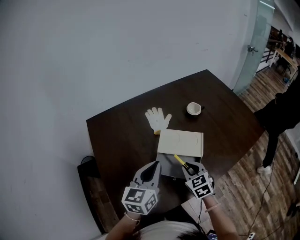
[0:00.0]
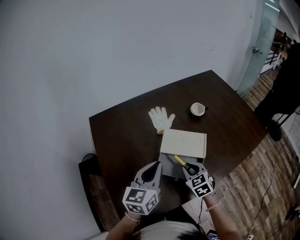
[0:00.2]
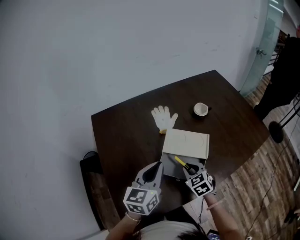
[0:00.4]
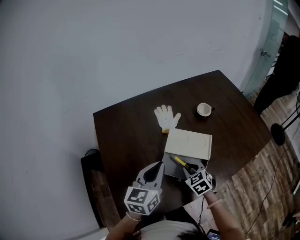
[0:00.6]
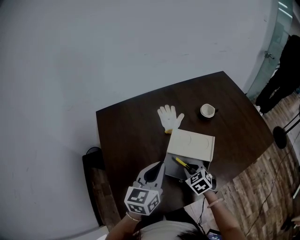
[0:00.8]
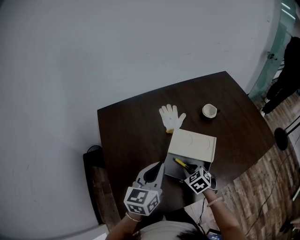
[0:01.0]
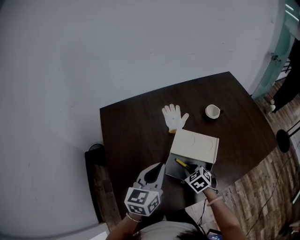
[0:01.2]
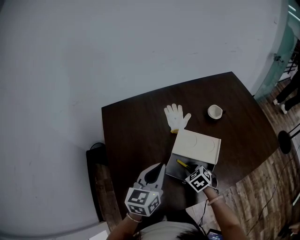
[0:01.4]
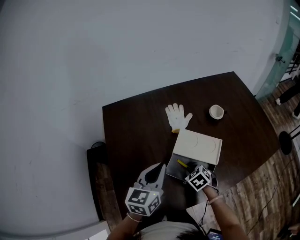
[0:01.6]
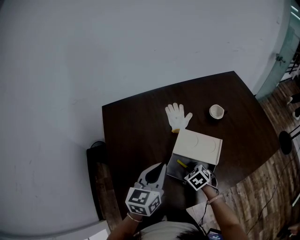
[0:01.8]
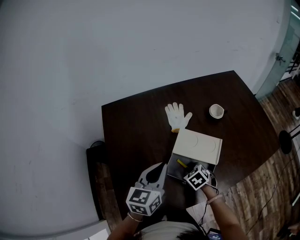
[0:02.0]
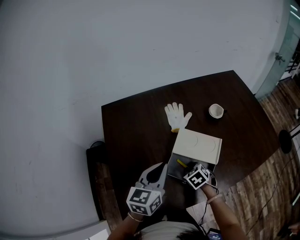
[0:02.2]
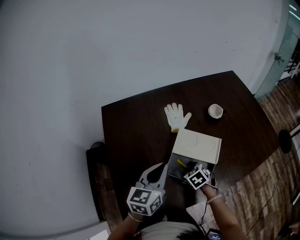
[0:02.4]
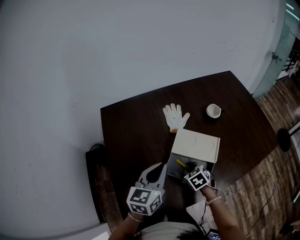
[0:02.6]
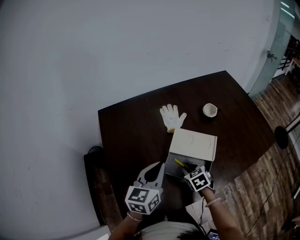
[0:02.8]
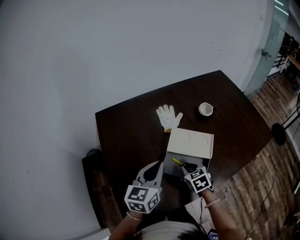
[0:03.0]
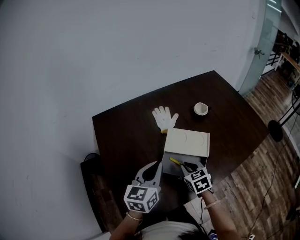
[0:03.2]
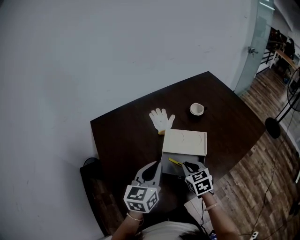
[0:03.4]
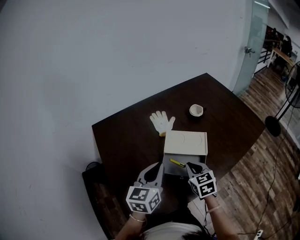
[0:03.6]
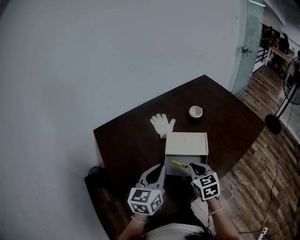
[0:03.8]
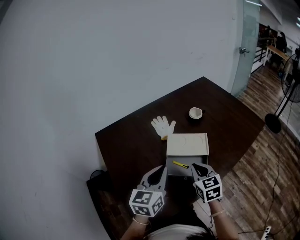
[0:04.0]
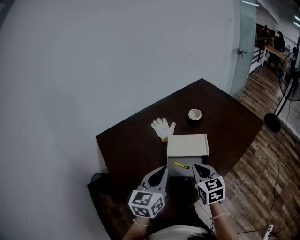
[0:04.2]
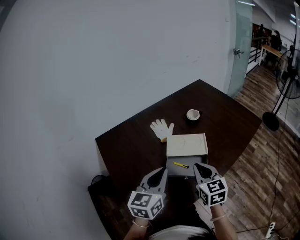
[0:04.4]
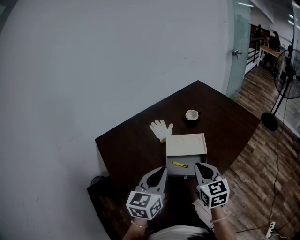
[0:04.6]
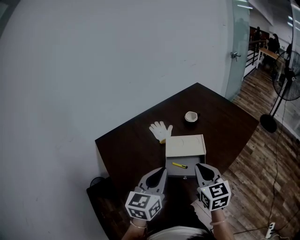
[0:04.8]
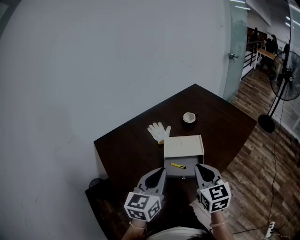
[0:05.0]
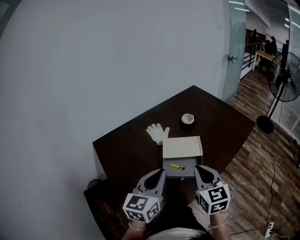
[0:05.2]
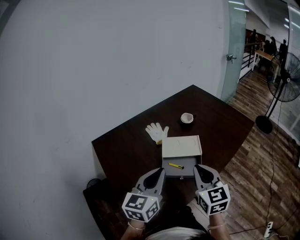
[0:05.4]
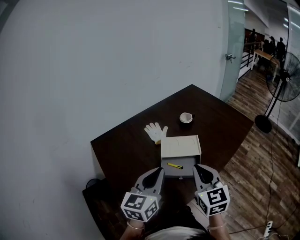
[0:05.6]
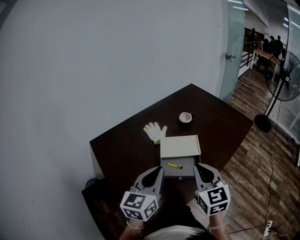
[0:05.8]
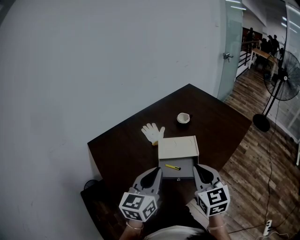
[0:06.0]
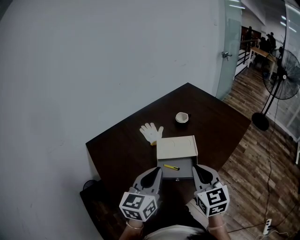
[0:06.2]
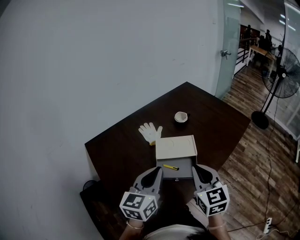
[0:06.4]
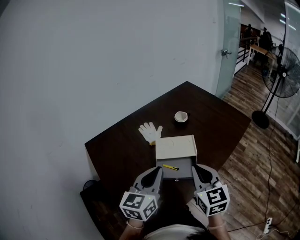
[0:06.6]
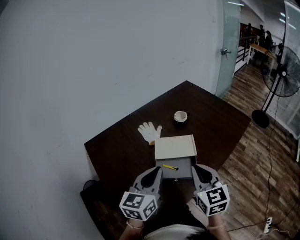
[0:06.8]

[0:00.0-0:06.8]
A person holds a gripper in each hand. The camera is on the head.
0:00.0 to 0:01.4: The right gripper is displaced downward by roughly 10 cm, and rotates roughly 30 degrees.
0:01.4 to 0:02.8: The grippers make only small movements.
0:02.8 to 0:04.0: The right gripper moves upward and backward, about 15 cm, and turns by some 30 degrees. Meanwhile the left gripper heads backward, covering approximately 5 cm.
0:04.0 to 0:05.4: The right gripper travels upward and backward by about 15 cm. The left gripper moves upward and backward, roughly 10 cm.
0:05.4 to 0:06.8: There are only small adjustments of the grippers.

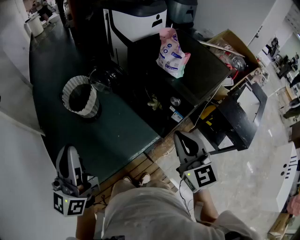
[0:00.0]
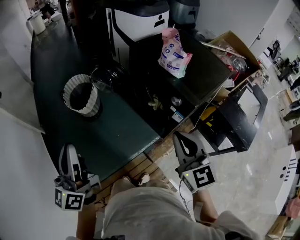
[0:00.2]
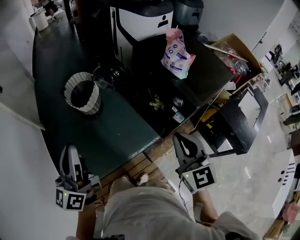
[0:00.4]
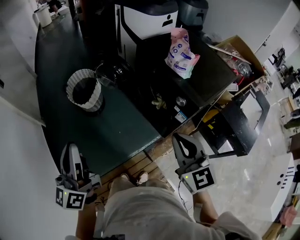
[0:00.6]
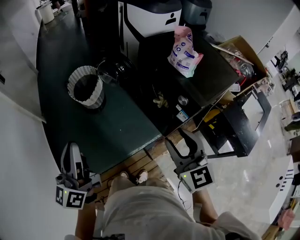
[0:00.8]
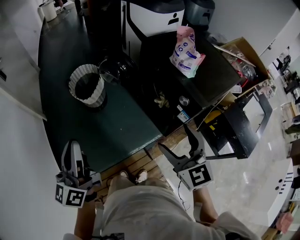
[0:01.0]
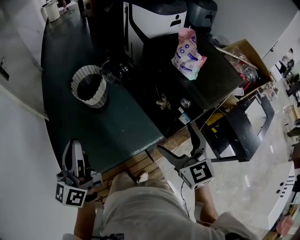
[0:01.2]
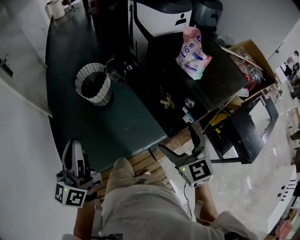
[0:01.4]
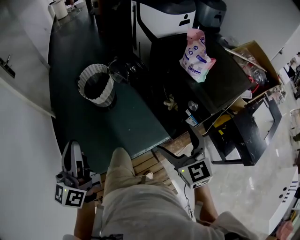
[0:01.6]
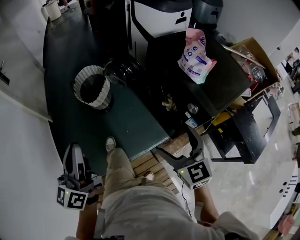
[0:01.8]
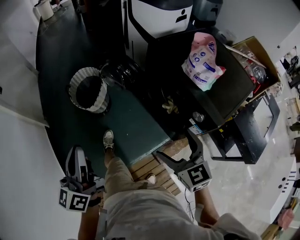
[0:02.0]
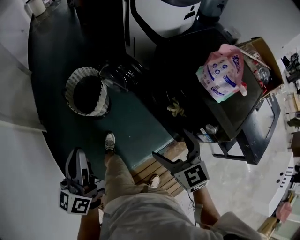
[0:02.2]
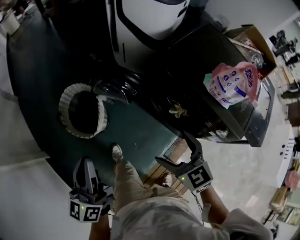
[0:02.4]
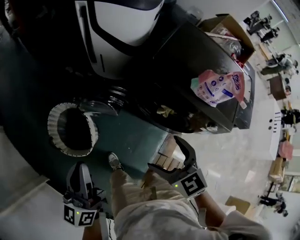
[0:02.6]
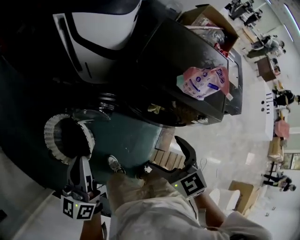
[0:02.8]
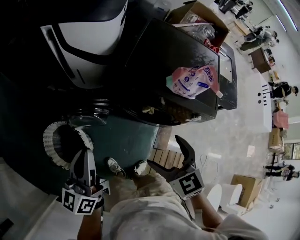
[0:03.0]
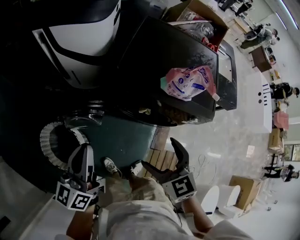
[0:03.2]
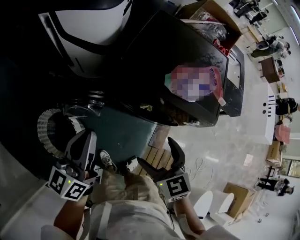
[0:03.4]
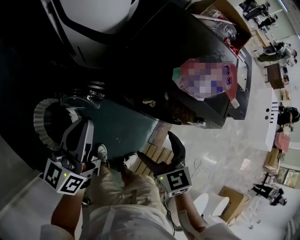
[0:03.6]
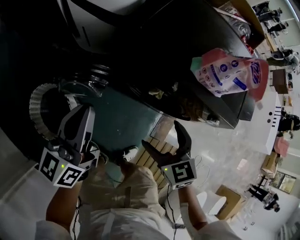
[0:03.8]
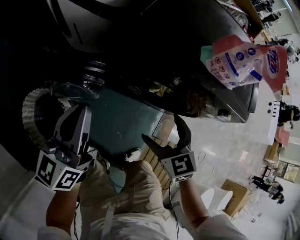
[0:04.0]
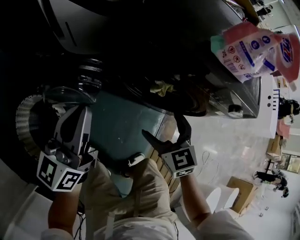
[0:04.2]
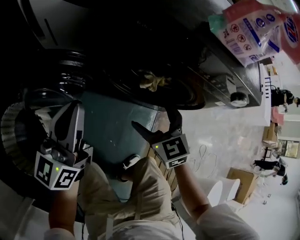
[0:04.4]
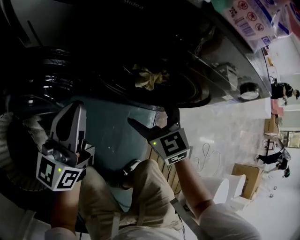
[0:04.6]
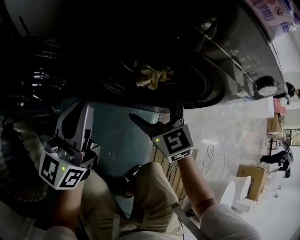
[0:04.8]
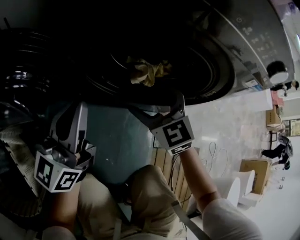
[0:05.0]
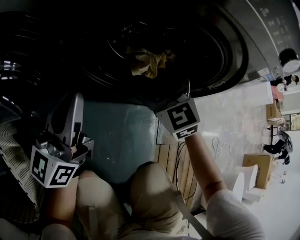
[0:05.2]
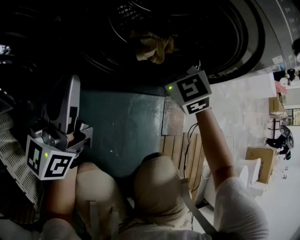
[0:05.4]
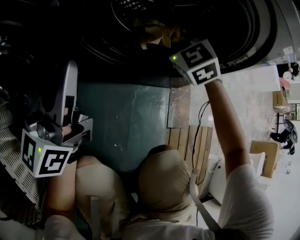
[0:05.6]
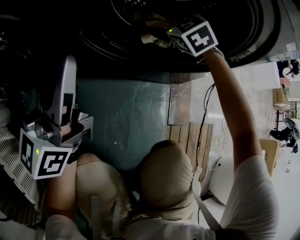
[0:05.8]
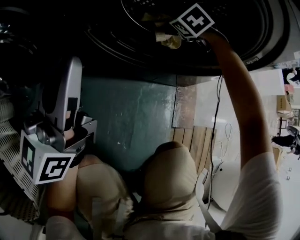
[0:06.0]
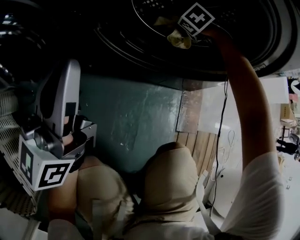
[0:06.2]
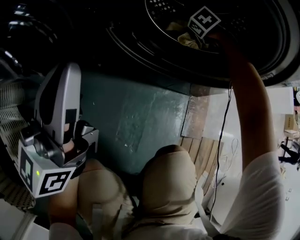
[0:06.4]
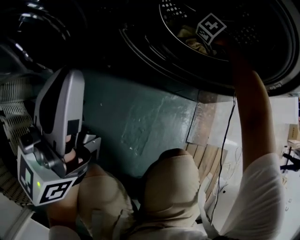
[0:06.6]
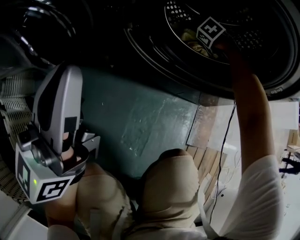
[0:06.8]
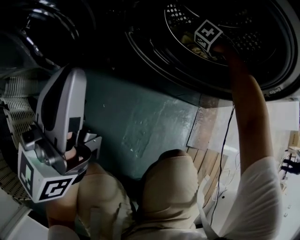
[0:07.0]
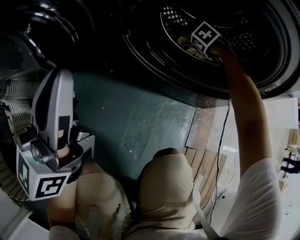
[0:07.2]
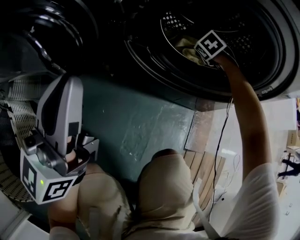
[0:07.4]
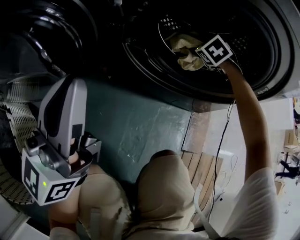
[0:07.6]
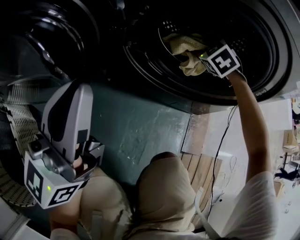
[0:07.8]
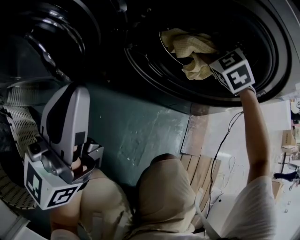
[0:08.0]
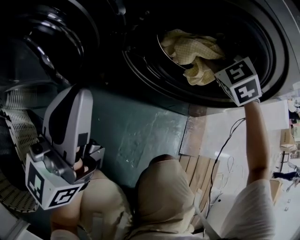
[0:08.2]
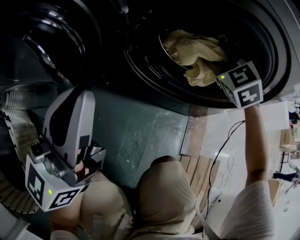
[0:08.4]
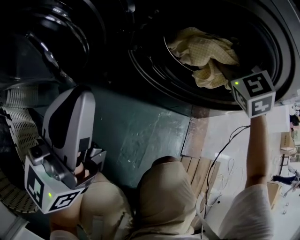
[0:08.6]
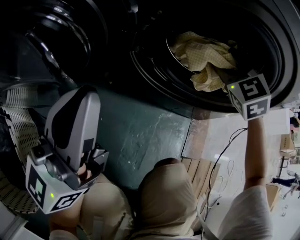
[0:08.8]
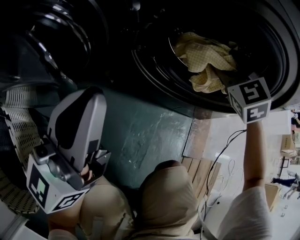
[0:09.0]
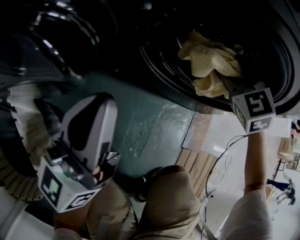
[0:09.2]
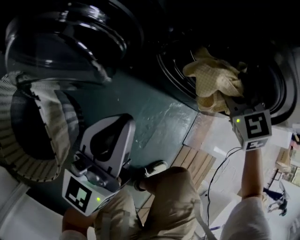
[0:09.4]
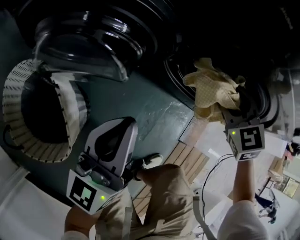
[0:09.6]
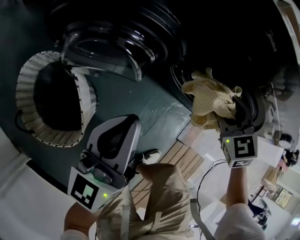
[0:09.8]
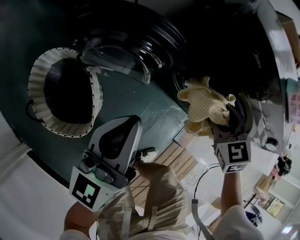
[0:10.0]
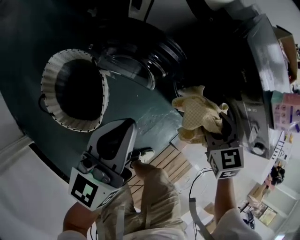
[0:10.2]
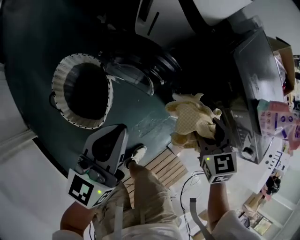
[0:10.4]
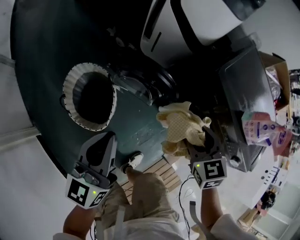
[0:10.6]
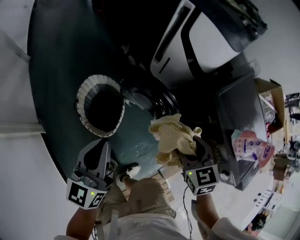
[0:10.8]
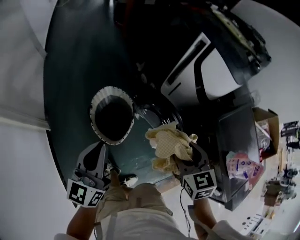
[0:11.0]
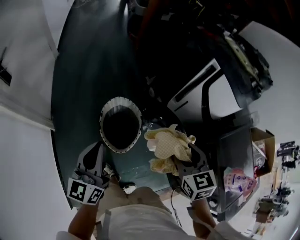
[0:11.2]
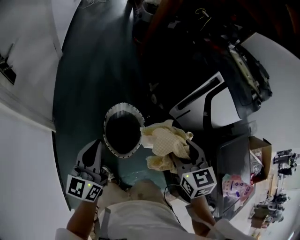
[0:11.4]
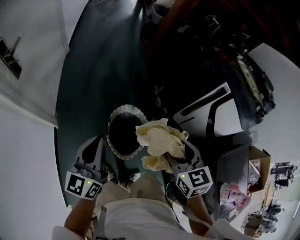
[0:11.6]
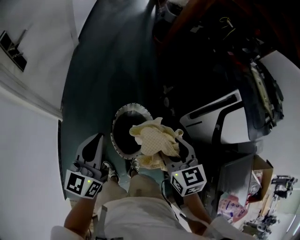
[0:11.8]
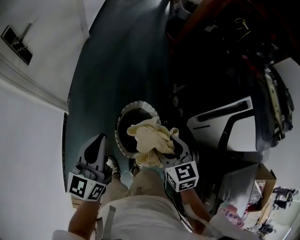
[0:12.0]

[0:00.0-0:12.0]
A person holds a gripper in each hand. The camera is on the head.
0:00.0 to 0:01.6: The left gripper changes place by approximately 5 cm. Meanwhile the right gripper ends up roughly 10 cm from where it was, and opens up.
0:01.6 to 0:03.0: The left gripper moves about 50 cm, and rotates approximately 50 degrees; the right gripper travels downward and back again, some 5 cm each way, and swivels about 40 degrees.
0:03.0 to 0:04.4: The grippers both shift downward by about 35 cm.
0:04.4 to 0:06.0: The left gripper is displaced downward by roughly 25 cm; the right gripper heads downward, forward and to the right, covering about 40 cm, and changes its angle by some 40 degrees.
0:06.0 to 0:07.6: The left gripper travels backward by about 5 cm, while the right gripper reaches about 10 cm downward, then returns, and closes its fingers.
0:07.6 to 0:09.0: The right gripper shifts roughly 15 cm upward and backward, and changes its angle by about 20 degrees.
0:09.0 to 0:10.4: The grippers both shift upward by about 35 cm. The left gripper changes its angle by roughly 40 degrees; the right gripper changes its angle by roughly 30 degrees.
0:10.4 to 0:12.0: The right gripper moves about 50 cm, and changes its angle by approximately 50 degrees. Meanwhile the left gripper shifts by roughly 40 cm, and rotates about 50 degrees.

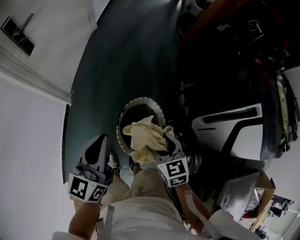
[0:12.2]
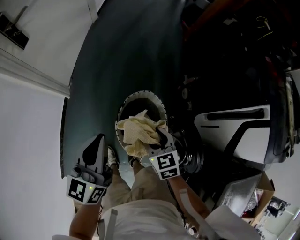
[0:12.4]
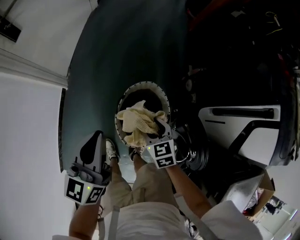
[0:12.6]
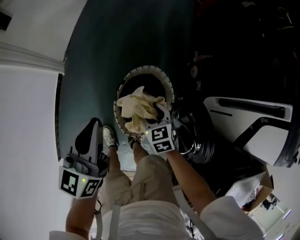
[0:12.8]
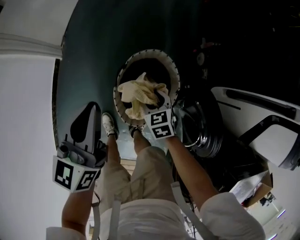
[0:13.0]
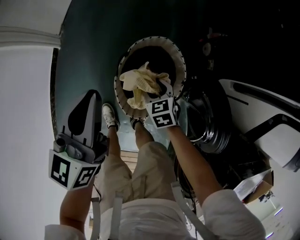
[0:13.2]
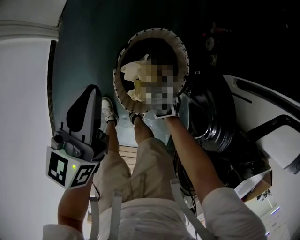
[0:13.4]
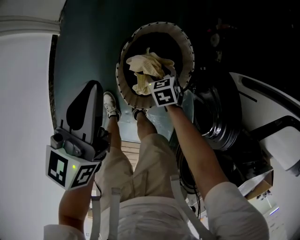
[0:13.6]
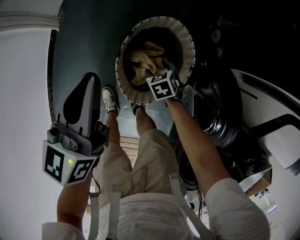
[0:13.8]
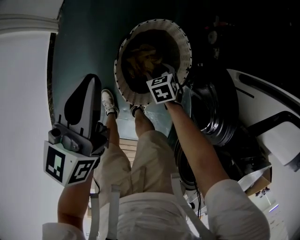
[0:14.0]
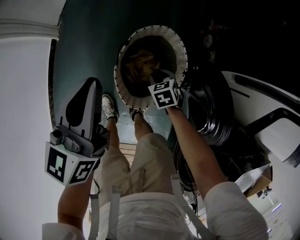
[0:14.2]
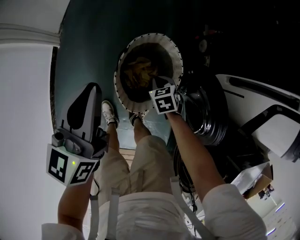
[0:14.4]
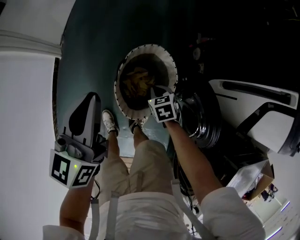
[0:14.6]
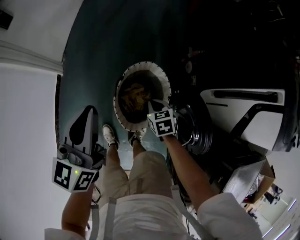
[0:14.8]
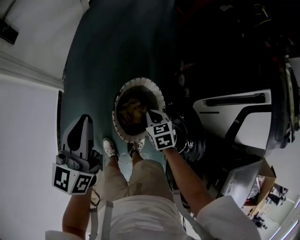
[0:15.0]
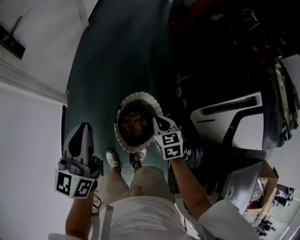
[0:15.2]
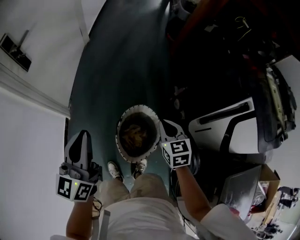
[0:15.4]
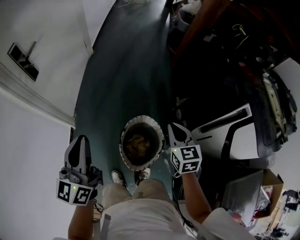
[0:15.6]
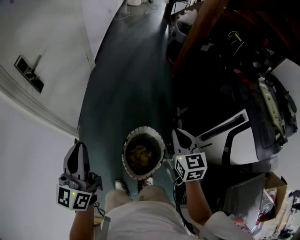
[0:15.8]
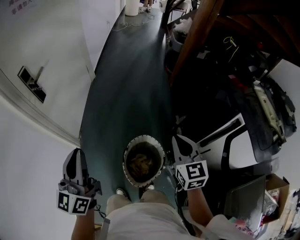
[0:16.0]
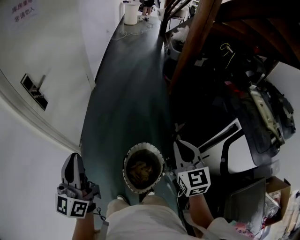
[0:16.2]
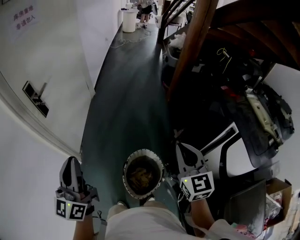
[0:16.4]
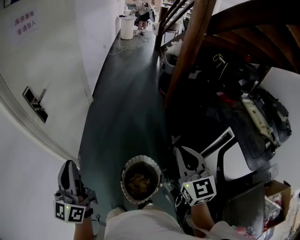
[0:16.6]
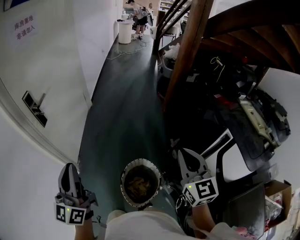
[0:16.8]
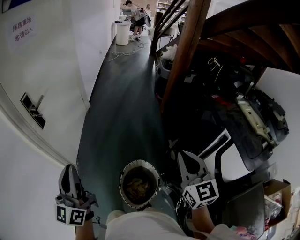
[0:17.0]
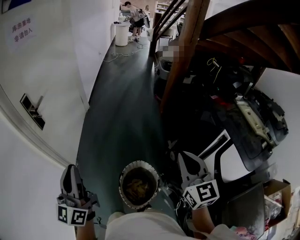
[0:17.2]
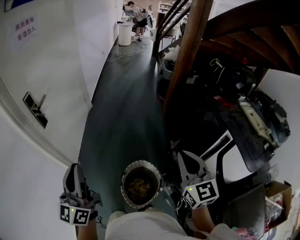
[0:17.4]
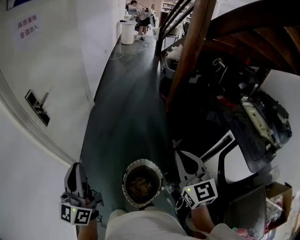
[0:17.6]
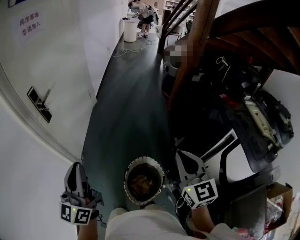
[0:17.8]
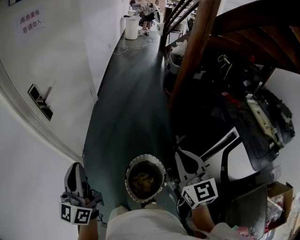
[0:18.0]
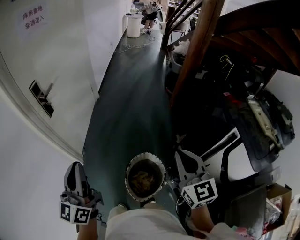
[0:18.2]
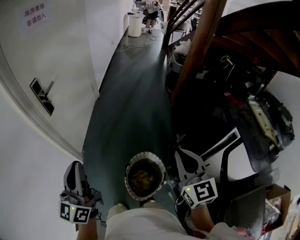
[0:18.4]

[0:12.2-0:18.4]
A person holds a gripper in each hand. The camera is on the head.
0:12.2 to 0:13.8: The left gripper heads downward, covering approximately 25 cm. The right gripper travels downward by about 40 cm, and points its fingers approximately 30 degrees further downward.
0:13.8 to 0:15.4: The right gripper goes about 50 cm upward, tilts its fingers some 30 degrees upward, and closes; the left gripper goes roughly 30 cm upward.
0:15.4 to 0:16.8: The left gripper travels upward by approximately 15 cm; the right gripper moves upward, some 30 cm, and points its fingers roughly 30 degrees further upward.
0:16.8 to 0:18.4: The right gripper is displaced to the left by about 5 cm.
